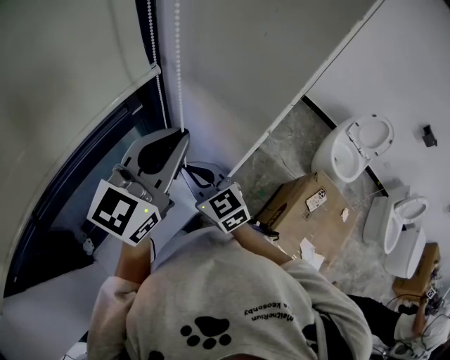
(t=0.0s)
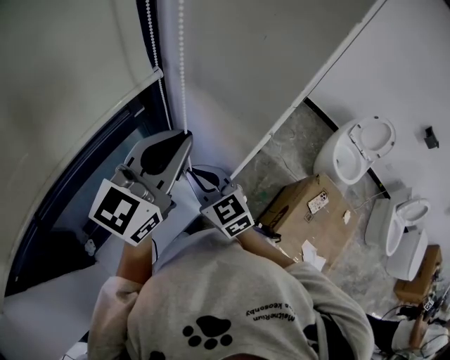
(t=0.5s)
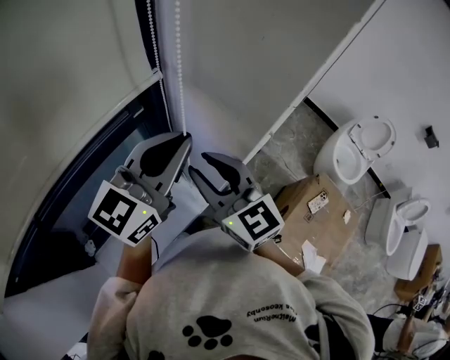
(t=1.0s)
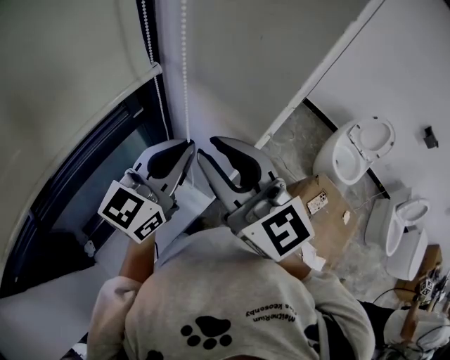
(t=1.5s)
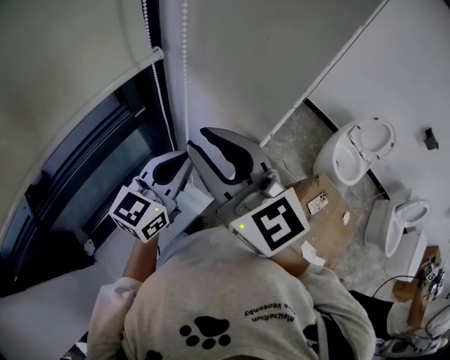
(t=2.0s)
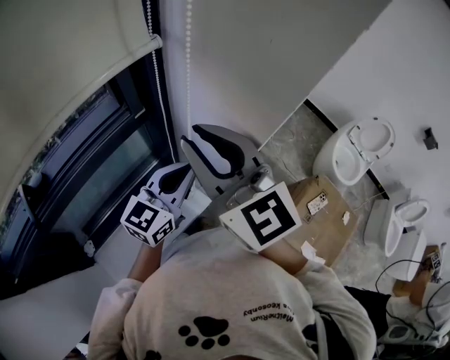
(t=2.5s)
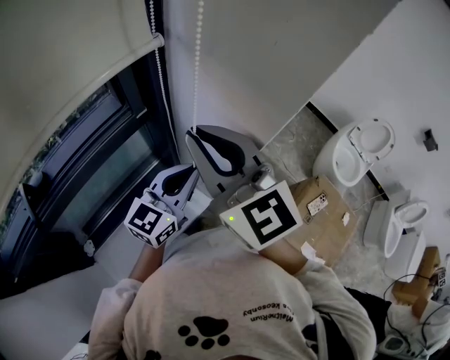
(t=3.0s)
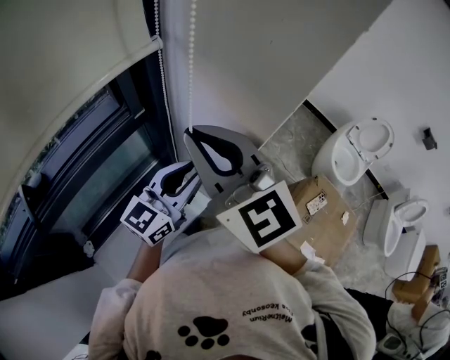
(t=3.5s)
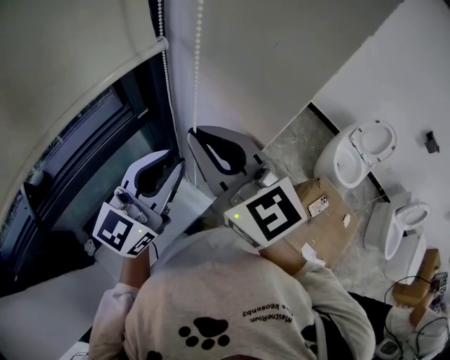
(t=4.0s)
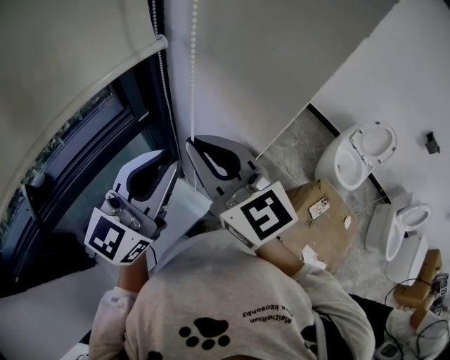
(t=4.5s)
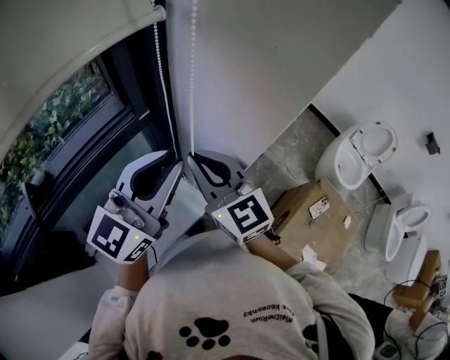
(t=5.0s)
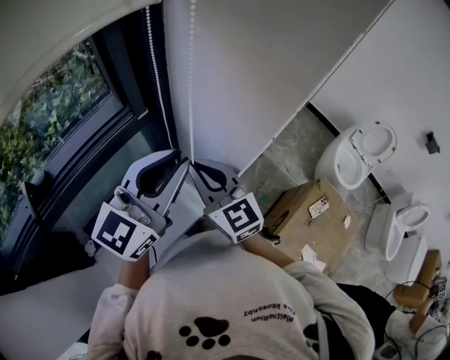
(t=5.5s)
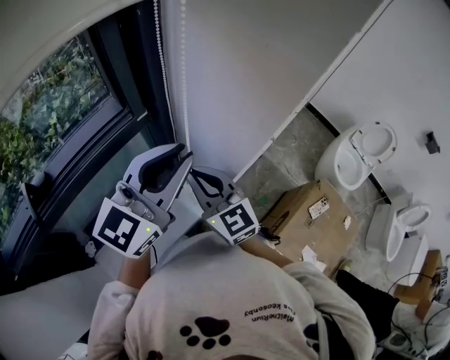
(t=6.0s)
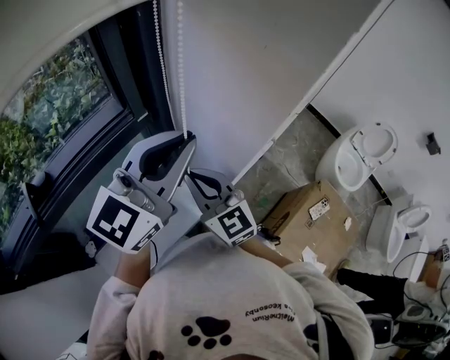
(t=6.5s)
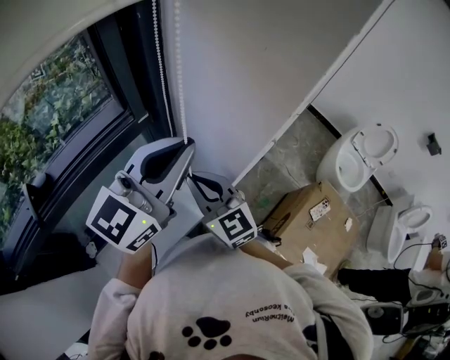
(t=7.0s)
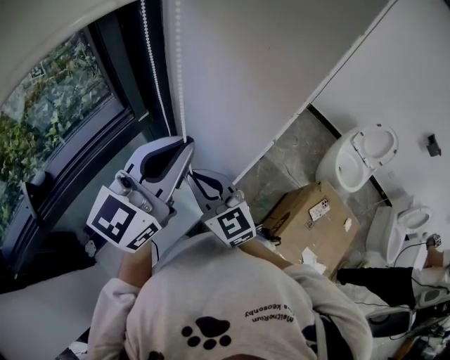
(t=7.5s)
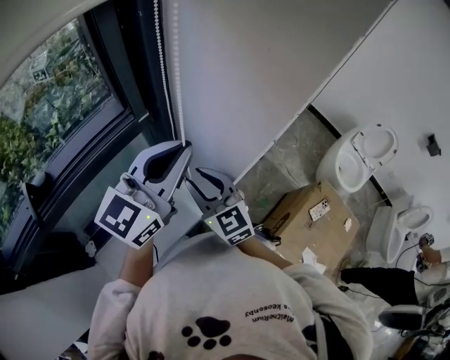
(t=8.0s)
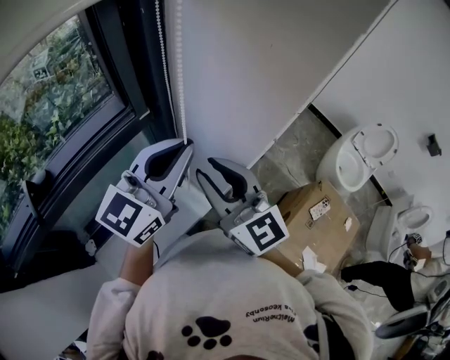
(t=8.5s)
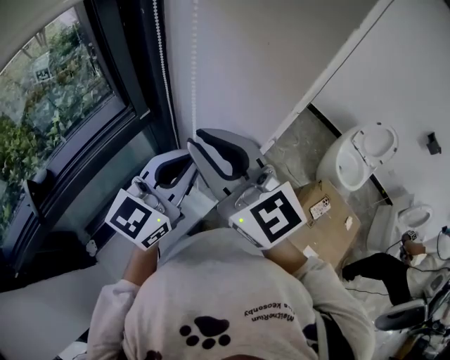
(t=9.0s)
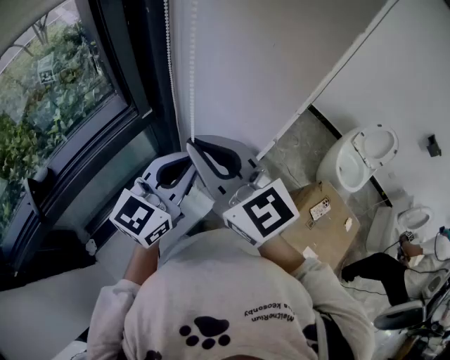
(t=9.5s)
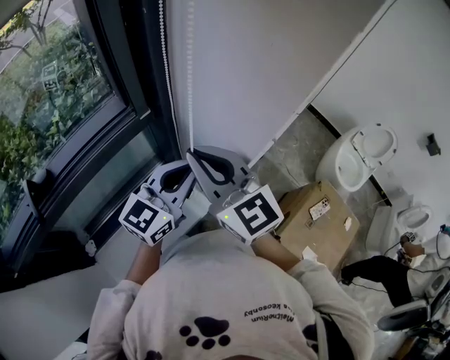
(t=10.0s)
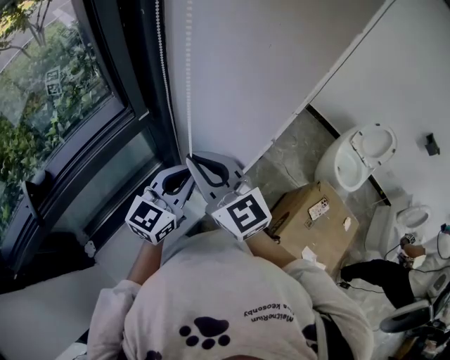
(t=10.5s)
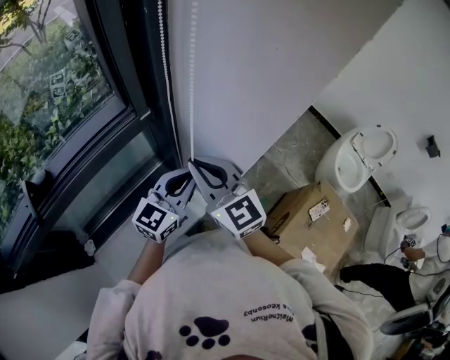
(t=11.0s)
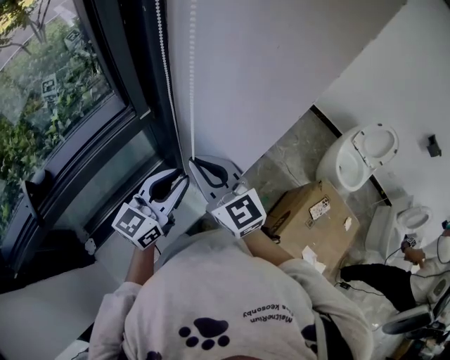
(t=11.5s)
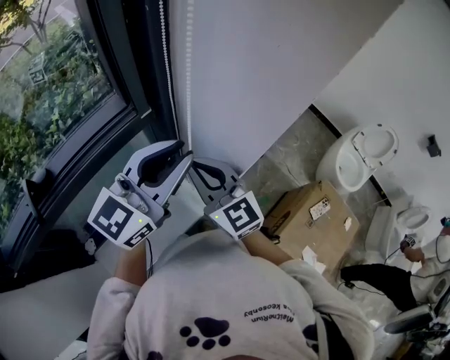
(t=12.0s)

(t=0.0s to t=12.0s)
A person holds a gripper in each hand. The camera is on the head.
t=0.0s - t=2.0s: The right gripper moves upward, about 20 cm, changes its angle by some 20 degrees, and opens. The left gripper is displaced downward by about 10 cm.
t=2.0s - t=4.0s: The right gripper closes, while the left gripper shifts approximately 5 cm upward.
t=4.0s - t=6.0s: The right gripper moves downward, roughly 15 cm.
t=6.0s - t=8.0s: The right gripper opens.
t=8.0s - t=10.0s: The right gripper heads upward, covering roughly 15 cm, and closes, while the left gripper travels downward by about 10 cm.
t=10.0s - t=12.0s: The right gripper travels downward by about 10 cm. The left gripper travels upward by roughly 10 cm.

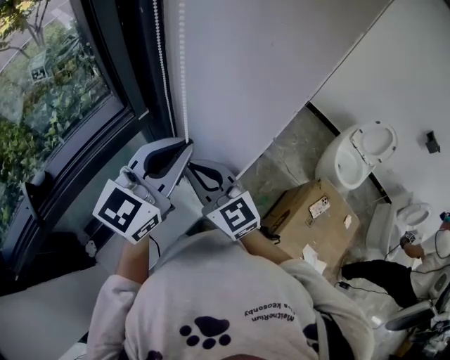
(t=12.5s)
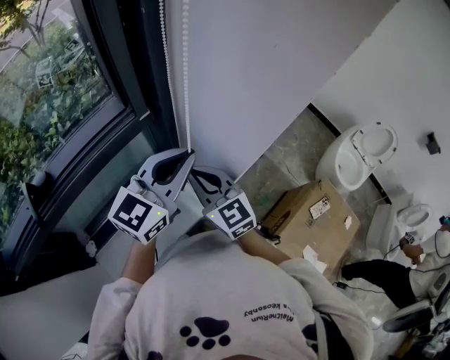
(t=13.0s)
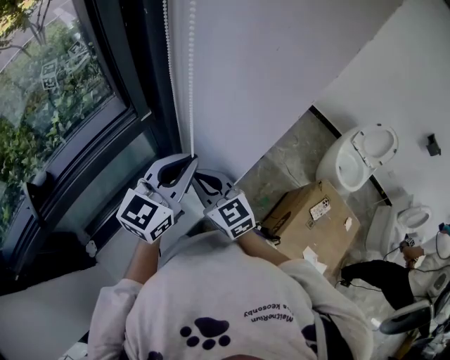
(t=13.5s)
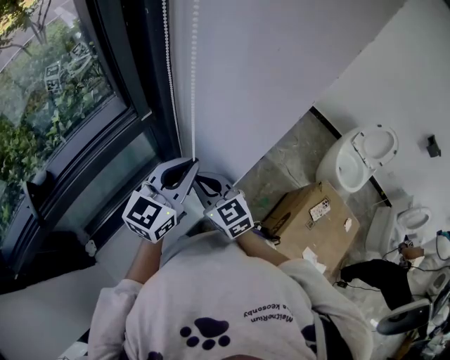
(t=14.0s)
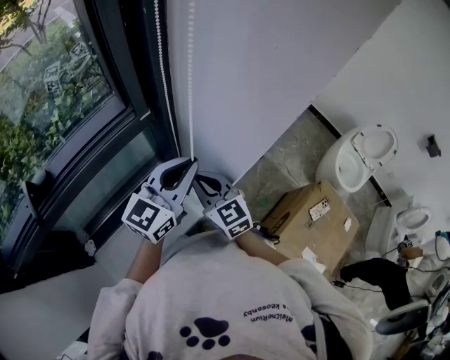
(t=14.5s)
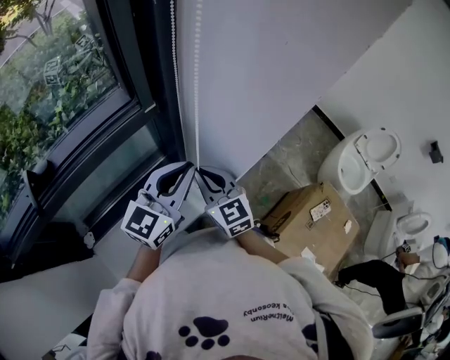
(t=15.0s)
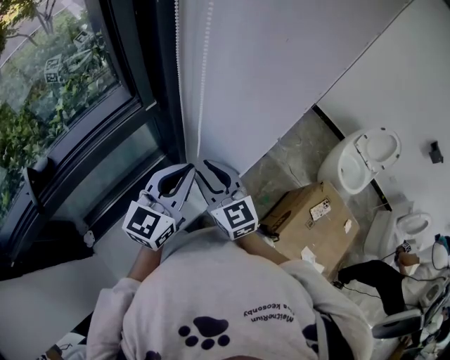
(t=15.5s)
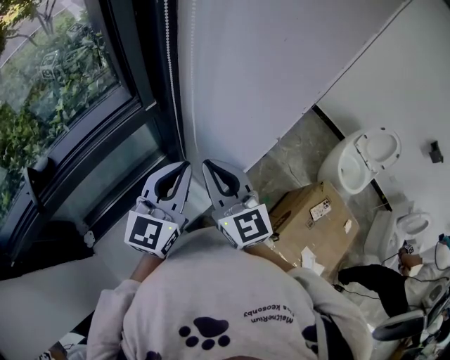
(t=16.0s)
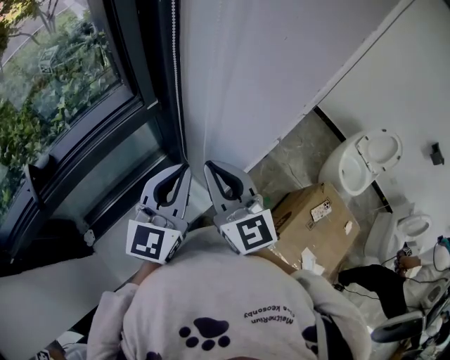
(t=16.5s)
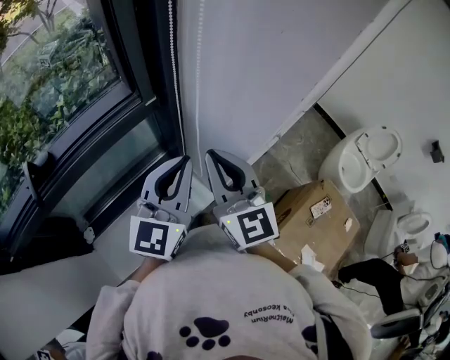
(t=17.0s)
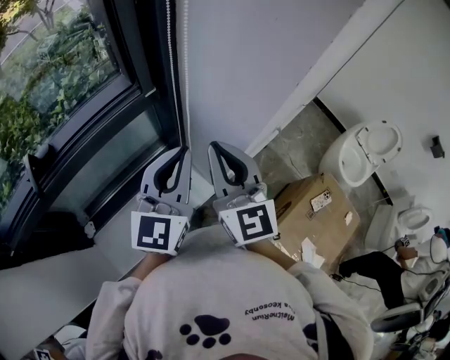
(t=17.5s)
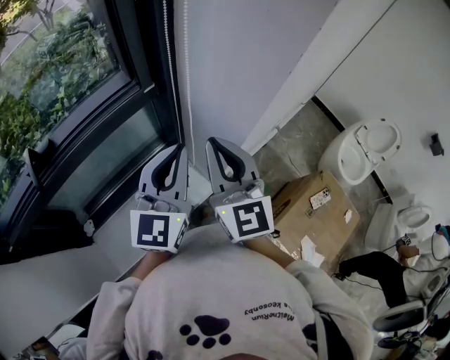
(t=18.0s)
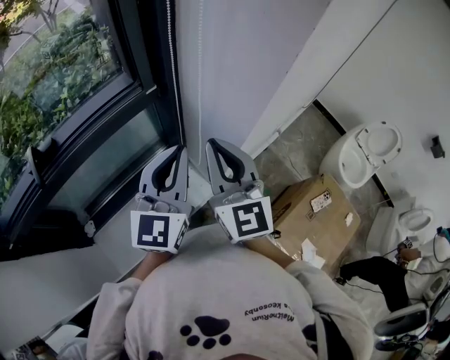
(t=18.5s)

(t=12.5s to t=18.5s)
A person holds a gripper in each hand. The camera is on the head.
t=12.5s - t=14.5s: Both grippers travel together downward, some 10 cm.
t=14.5s - t=16.5s: The right gripper heads upward, covering some 15 cm, and opens, then closes once more, while the left gripper shifts by roughly 5 cm.
t=16.5s - t=18.5s: There are only small adjustments of the grippers.

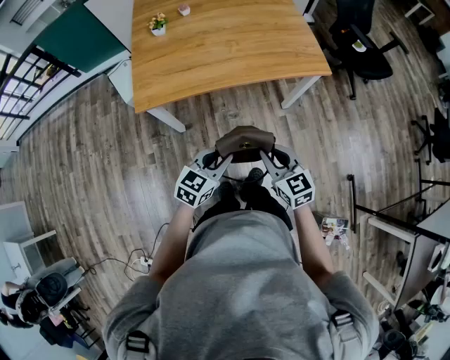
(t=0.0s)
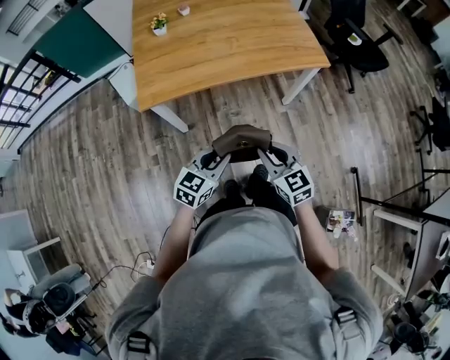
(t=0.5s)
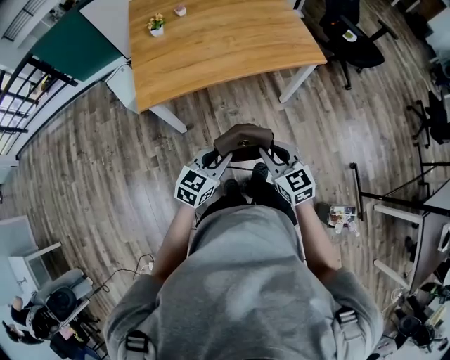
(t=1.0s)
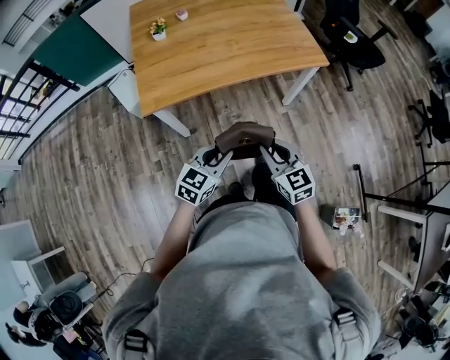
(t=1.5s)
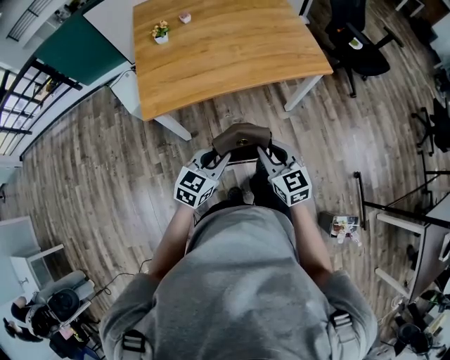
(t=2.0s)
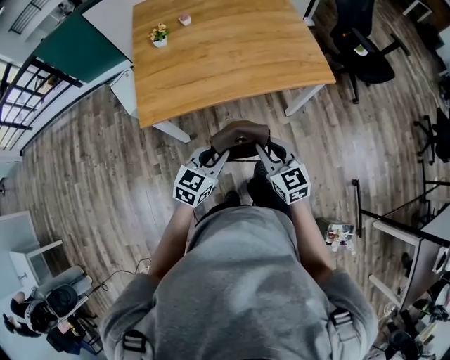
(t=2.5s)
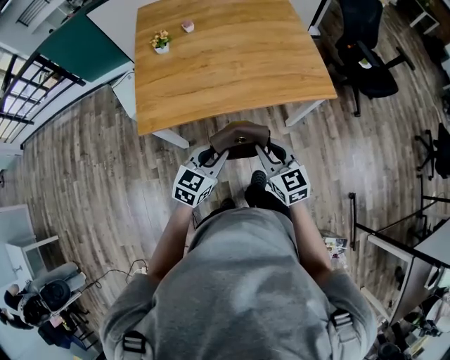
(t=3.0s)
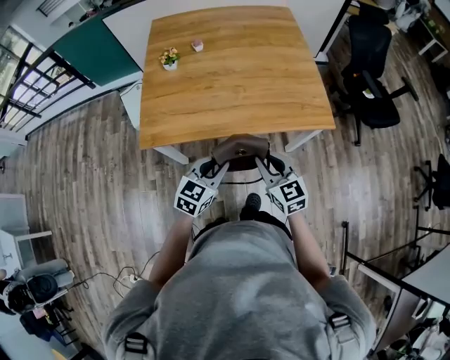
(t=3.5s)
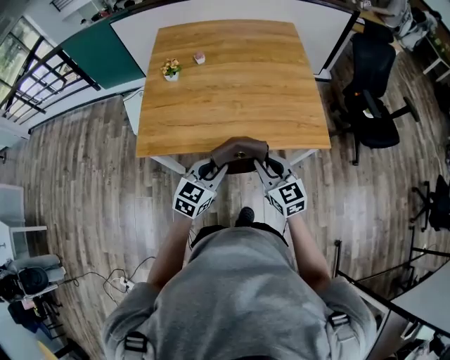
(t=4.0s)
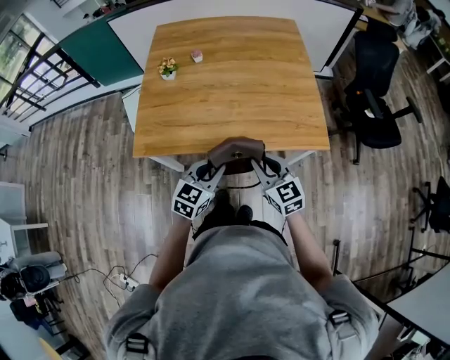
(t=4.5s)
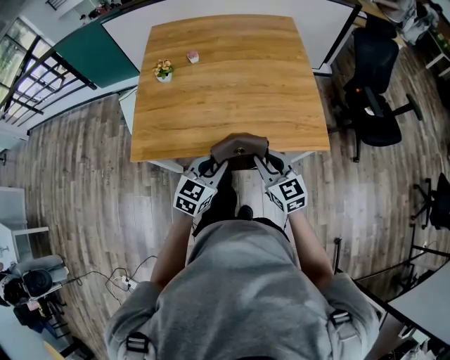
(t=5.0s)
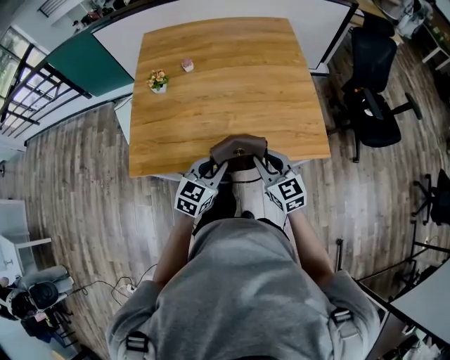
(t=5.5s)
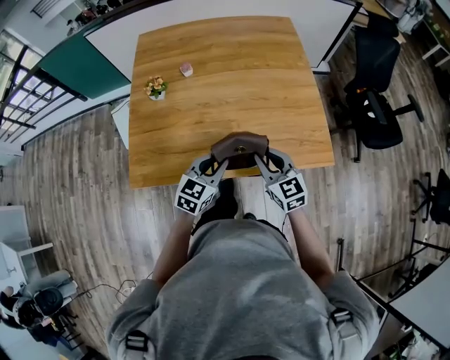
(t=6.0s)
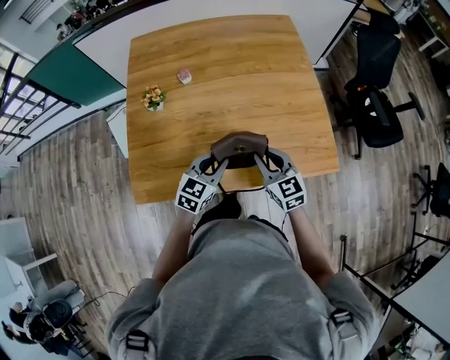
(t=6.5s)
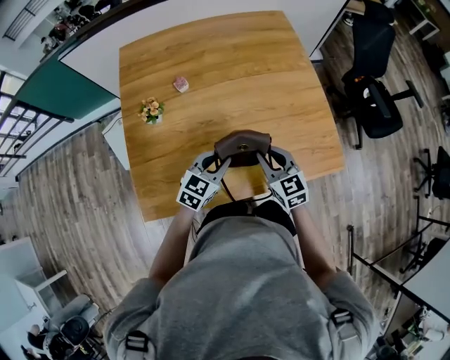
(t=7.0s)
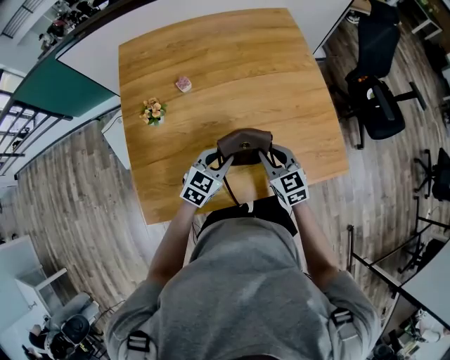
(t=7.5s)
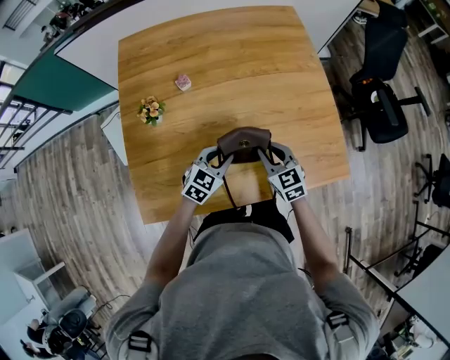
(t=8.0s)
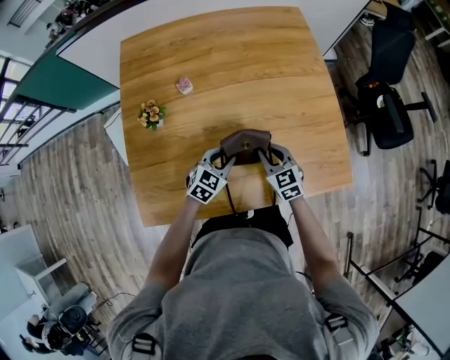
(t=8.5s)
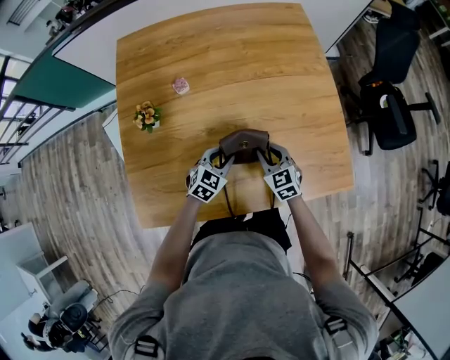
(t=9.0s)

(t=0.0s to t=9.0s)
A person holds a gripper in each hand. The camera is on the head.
t=0.0s - t=2.0s: The right gripper shifts by about 5 cm.
t=2.0s - t=4.5s: The left gripper goes roughly 25 cm forward and to the right; the right gripper travels forward by about 25 cm.
t=4.5s - t=7.0s: The two grippers go roughly 25 cm forward.
t=7.0s - t=9.0s: The grippers both shift downward and forward by approximately 15 cm.
